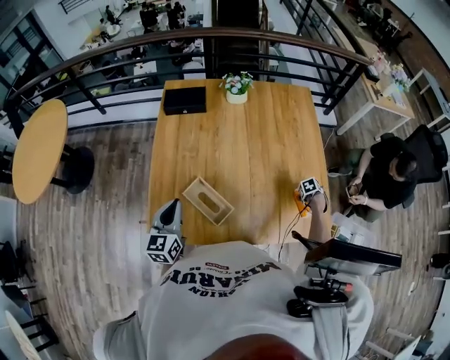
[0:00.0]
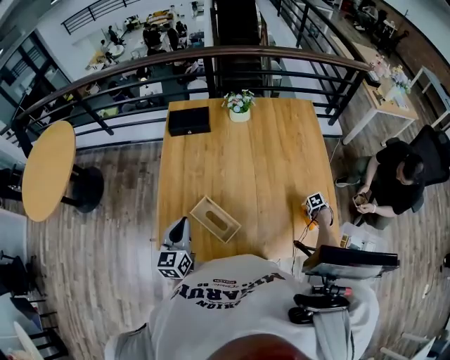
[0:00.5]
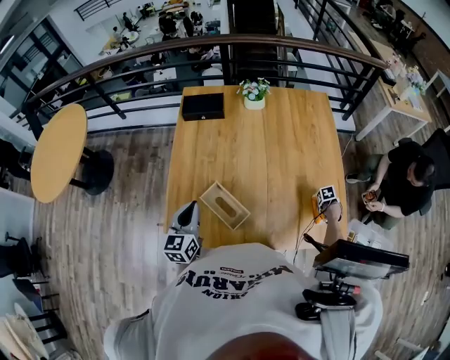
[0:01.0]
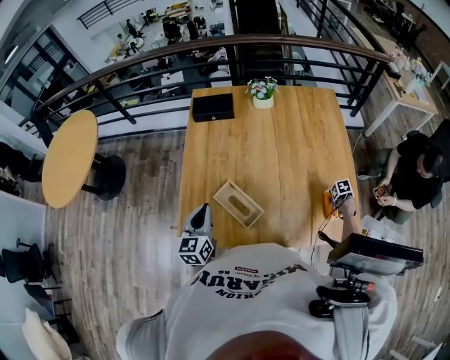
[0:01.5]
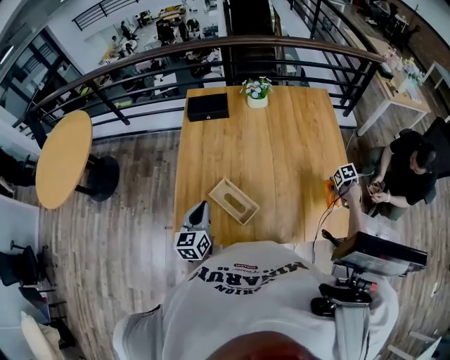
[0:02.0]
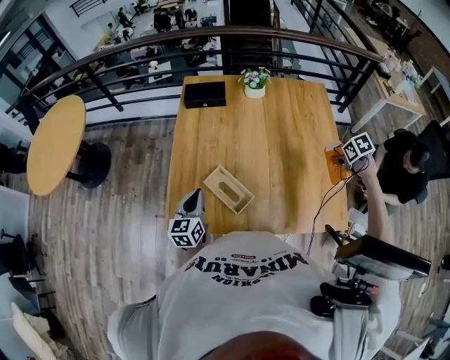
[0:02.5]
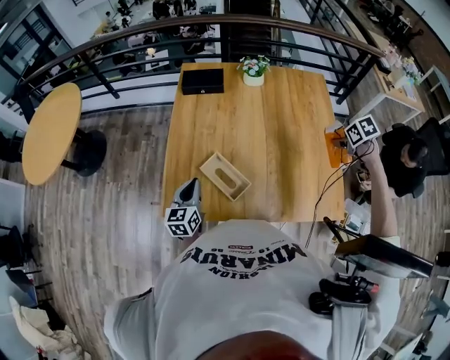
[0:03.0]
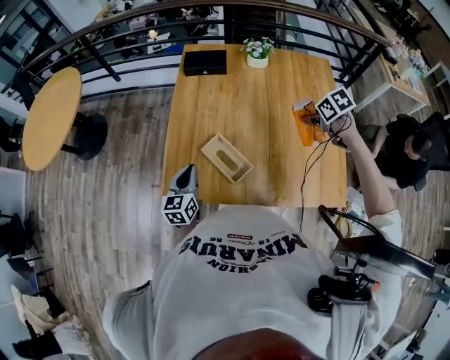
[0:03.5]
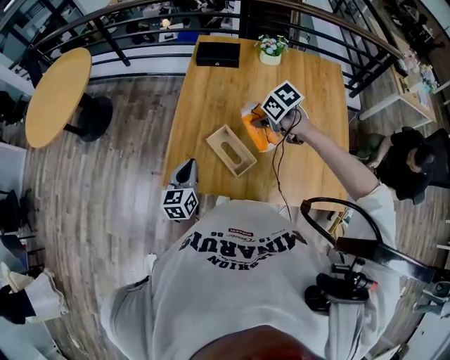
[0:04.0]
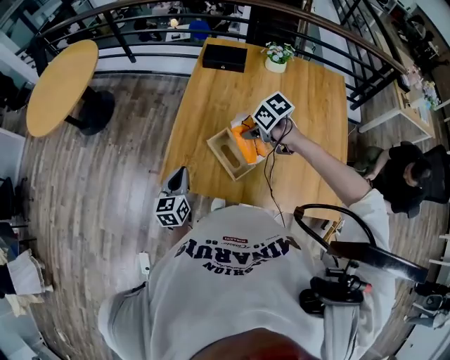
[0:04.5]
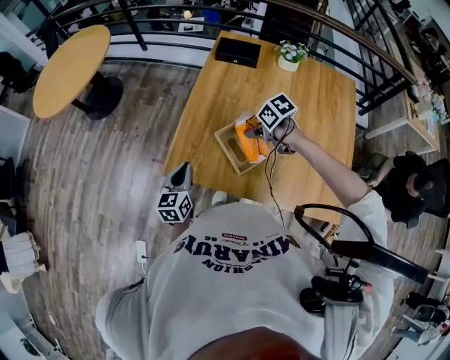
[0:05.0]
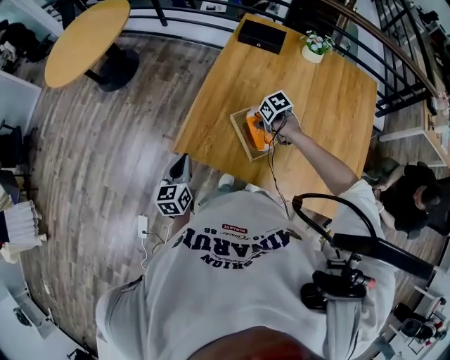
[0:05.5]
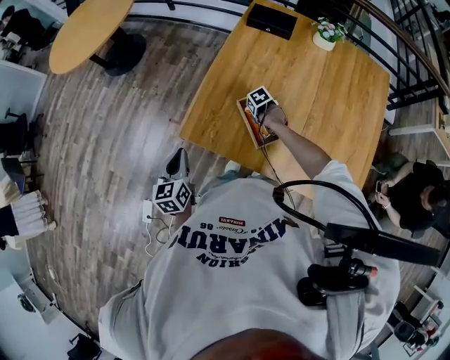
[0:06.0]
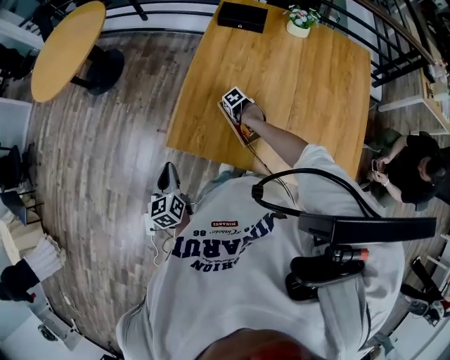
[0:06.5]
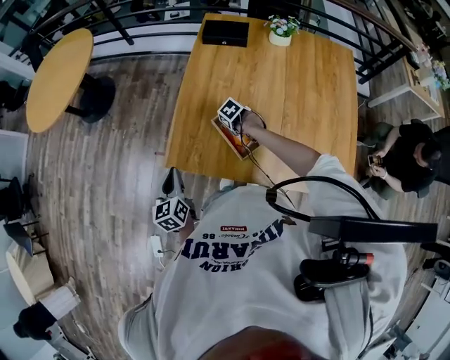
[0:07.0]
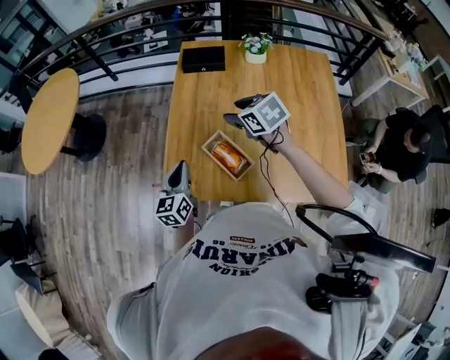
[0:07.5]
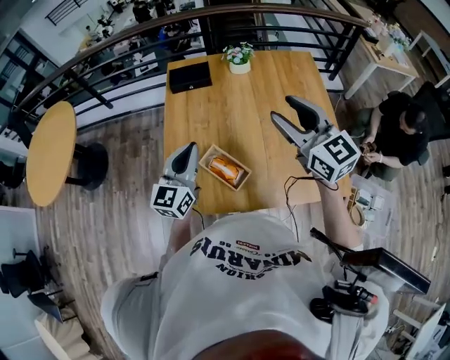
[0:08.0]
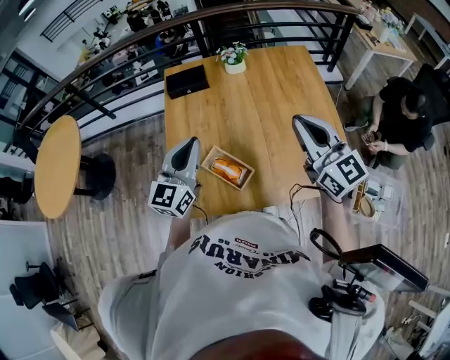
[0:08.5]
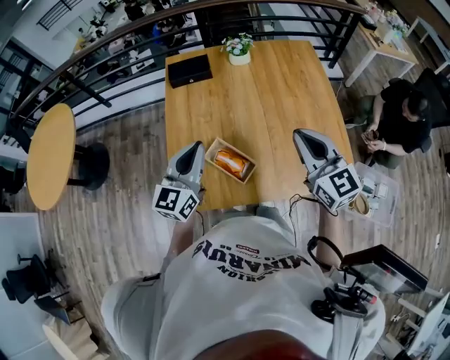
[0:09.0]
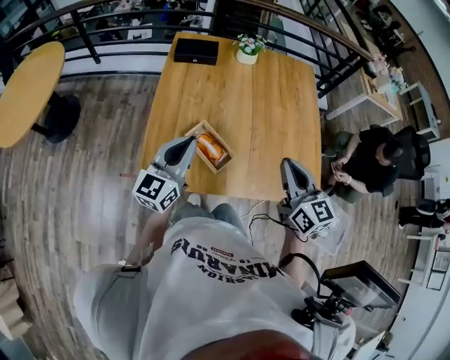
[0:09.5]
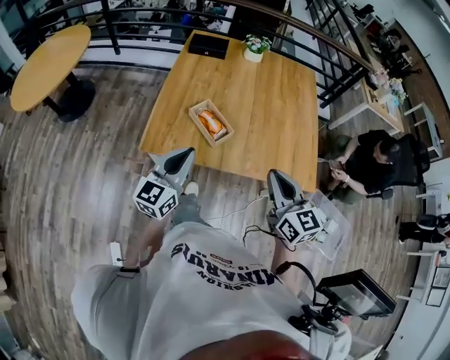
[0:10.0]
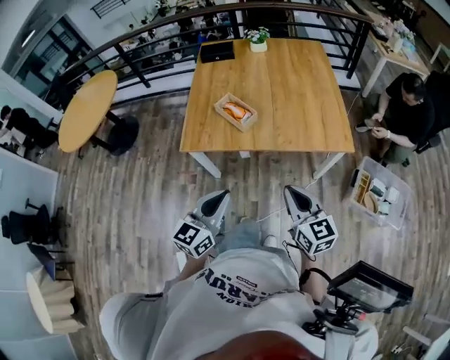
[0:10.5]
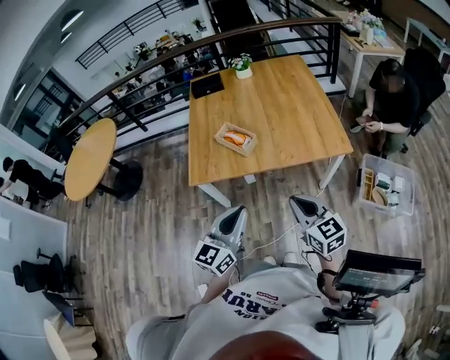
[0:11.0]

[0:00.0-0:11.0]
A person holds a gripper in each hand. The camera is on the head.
0:00.0 to 0:02.0: The right gripper moves upward, roughly 10 cm, and closes its fingers.
0:02.0 to 0:03.5: The right gripper heads upward, covering approximately 25 cm, and turns by approximately 30 degrees.
0:03.5 to 0:05.5: The right gripper shifts by approximately 35 cm, and changes its angle by about 20 degrees; the left gripper shifts by roughly 15 cm, and turns by some 20 degrees.
0:05.5 to 0:07.5: The right gripper moves upward, approximately 25 cm, and changes its angle by roughly 40 degrees. The left gripper shifts by about 15 cm.
0:07.5 to 0:09.0: The left gripper goes roughly 15 cm upward, and turns by roughly 30 degrees; the right gripper ends up about 25 cm from where it was, tilts its fingers roughly 40 degrees upward, and closes.
0:09.0 to 0:11.0: Both grippers are carried backward, roughly 50 cm.

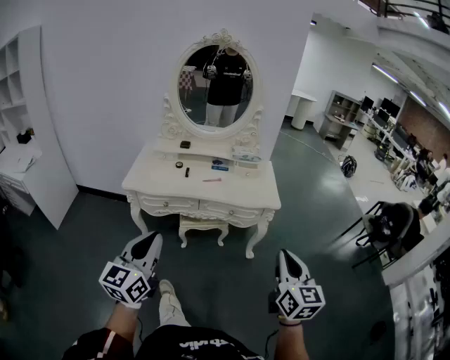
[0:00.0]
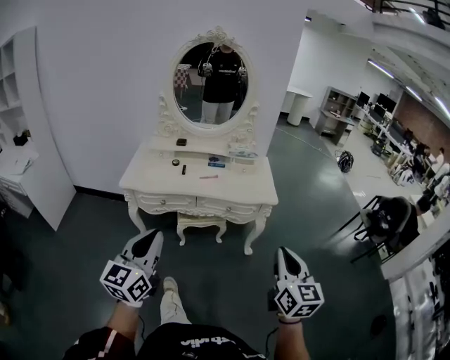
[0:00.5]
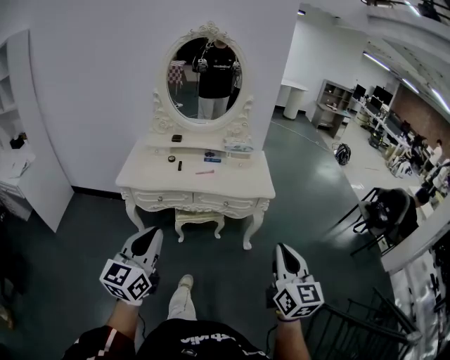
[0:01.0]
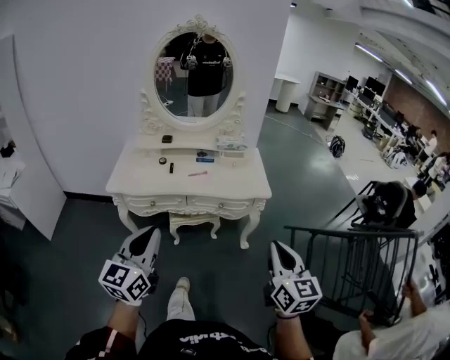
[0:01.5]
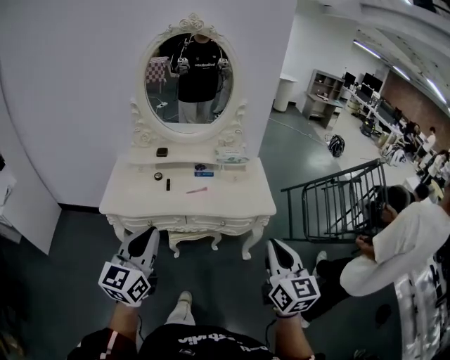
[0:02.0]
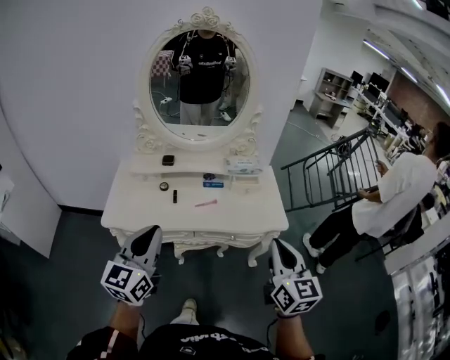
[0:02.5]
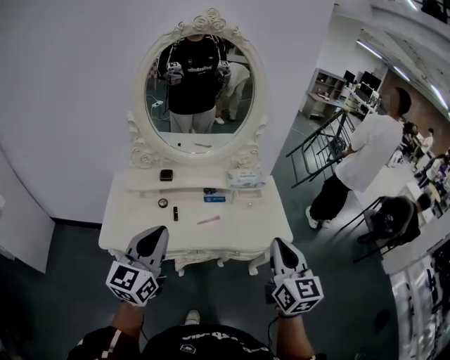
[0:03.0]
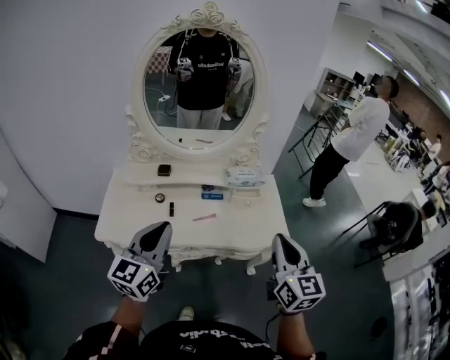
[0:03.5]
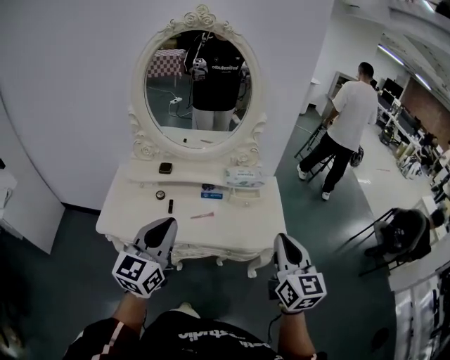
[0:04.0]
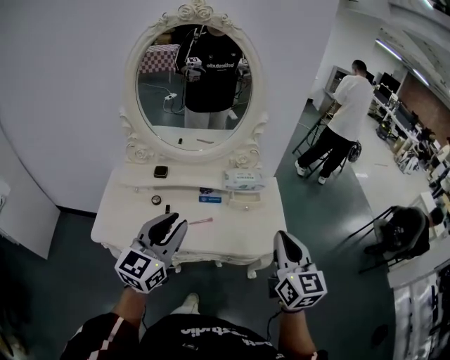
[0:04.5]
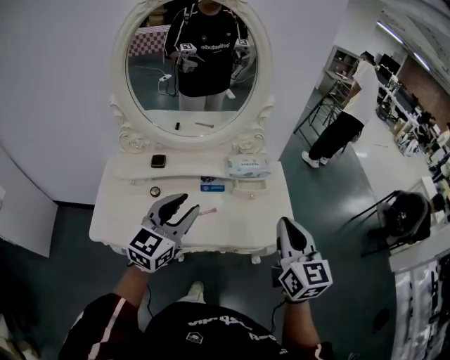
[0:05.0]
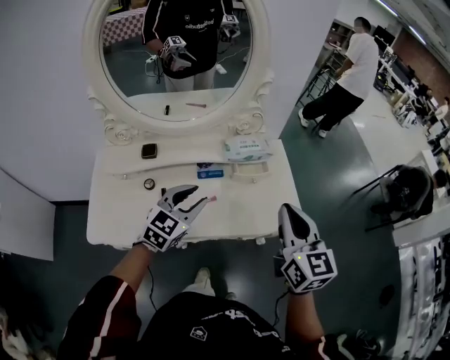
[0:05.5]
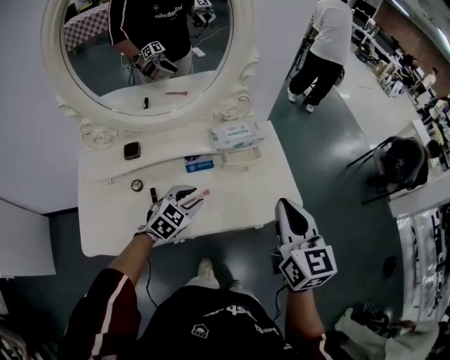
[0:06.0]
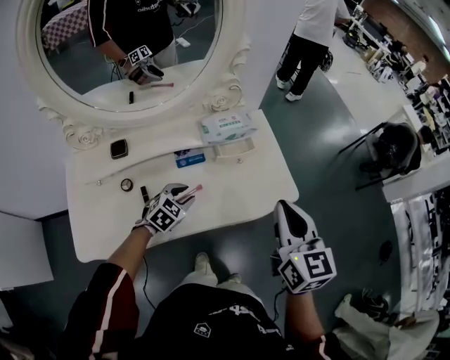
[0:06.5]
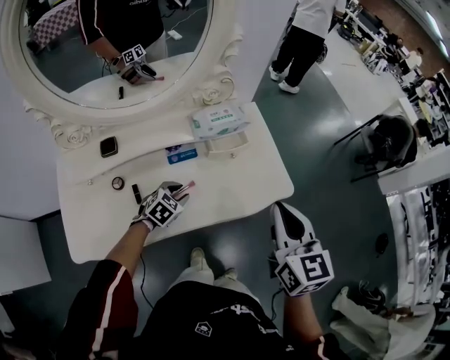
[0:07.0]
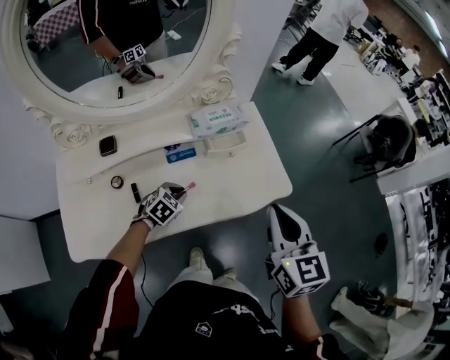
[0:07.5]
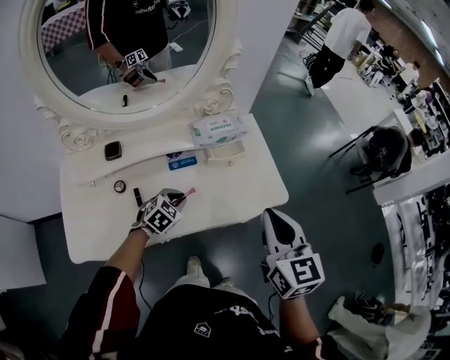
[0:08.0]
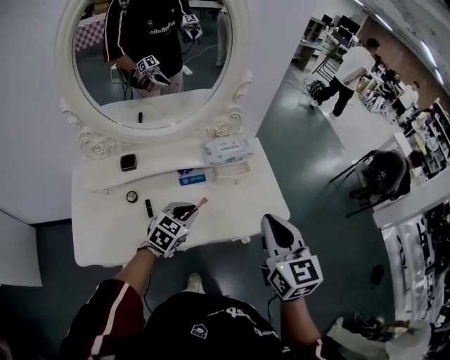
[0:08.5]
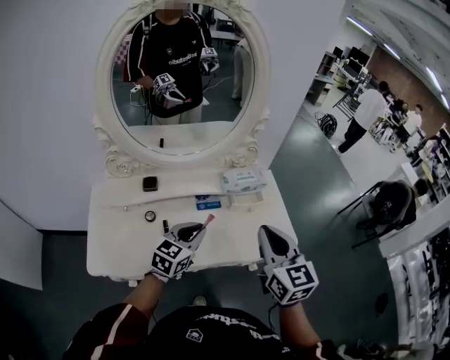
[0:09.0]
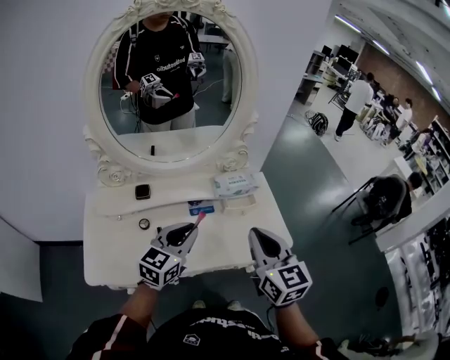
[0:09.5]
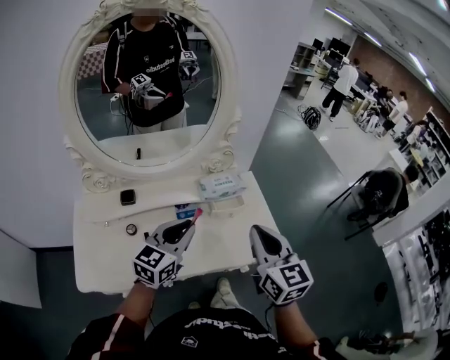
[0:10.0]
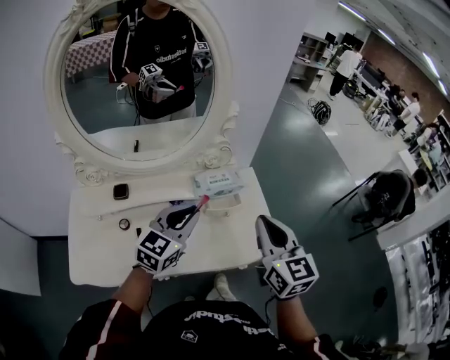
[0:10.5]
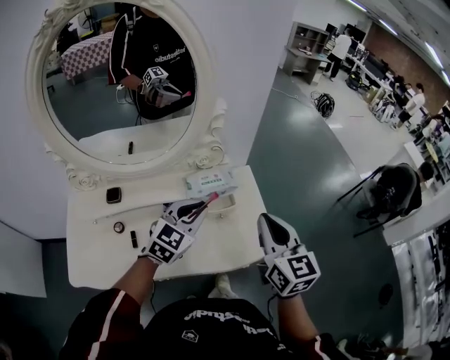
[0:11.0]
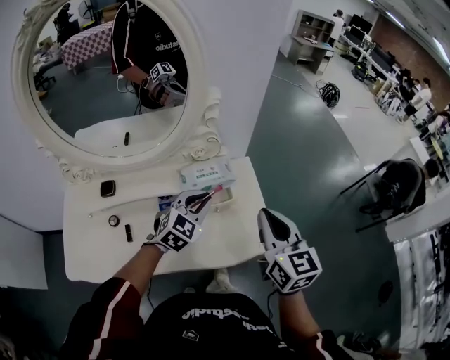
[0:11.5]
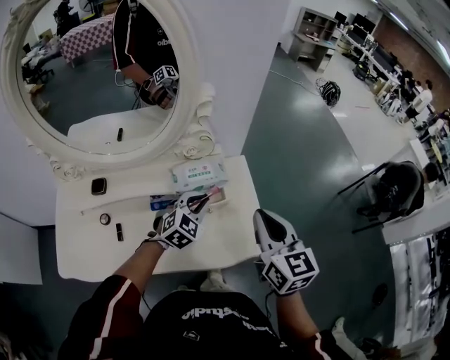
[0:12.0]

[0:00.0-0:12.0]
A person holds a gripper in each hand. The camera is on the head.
0:00.0 to 0:02.0: The grippers both shift forward by some 15 cm.
0:02.0 to 0:04.0: The two grippers go about 20 cm forward.
0:04.0 to 0:06.0: The right gripper shifts roughly 15 cm forward, to the left and downward; the left gripper heads downward and forward, covering roughly 35 cm, points its fingers about 40 degrees further downward, and opens up.
0:06.0 to 0:08.0: The left gripper goes approximately 10 cm downward, and closes up.
0:08.0 to 0:10.0: The right gripper goes roughly 5 cm upward; the left gripper shifts roughly 25 cm upward, and points its fingers about 40 degrees further upward.
0:10.0 to 0:12.0: The right gripper heads forward and to the right, covering approximately 15 cm. Meanwhile the left gripper heads forward, to the right and downward, covering roughly 25 cm, and swivels about 40 degrees.

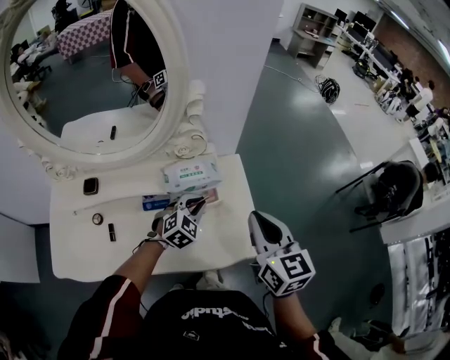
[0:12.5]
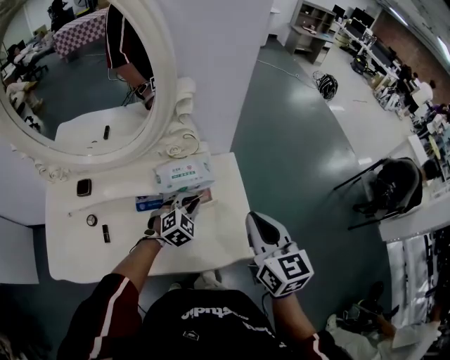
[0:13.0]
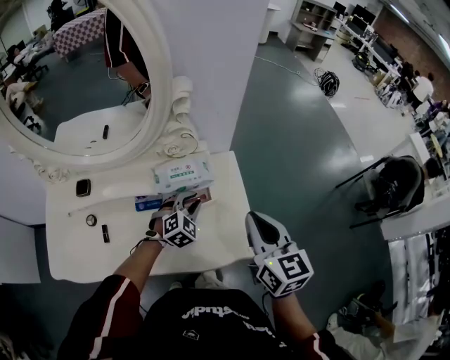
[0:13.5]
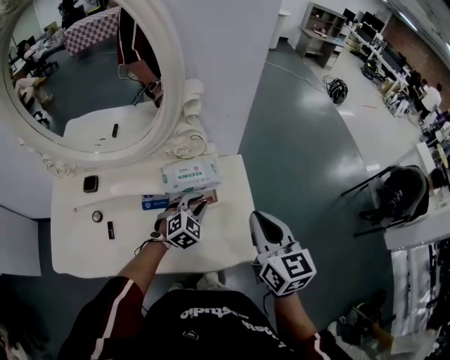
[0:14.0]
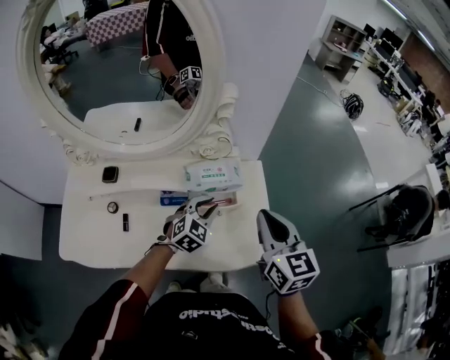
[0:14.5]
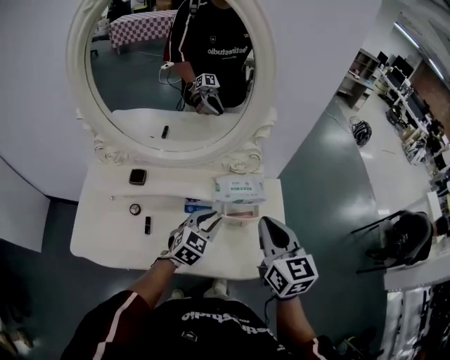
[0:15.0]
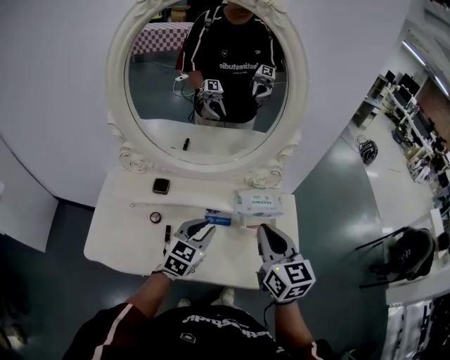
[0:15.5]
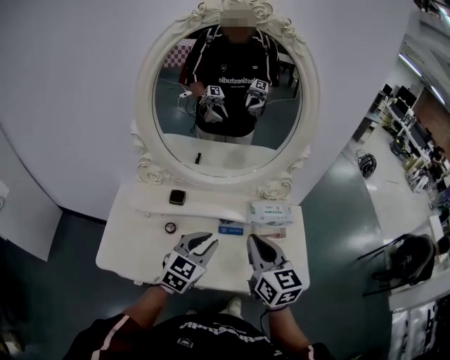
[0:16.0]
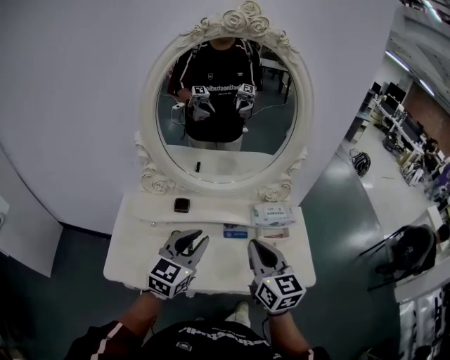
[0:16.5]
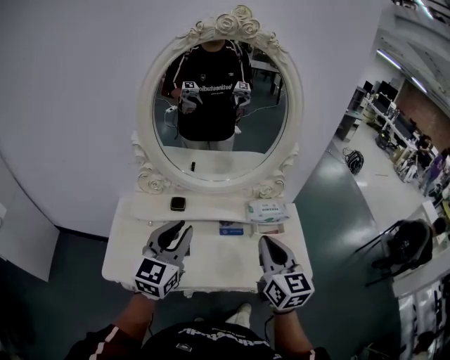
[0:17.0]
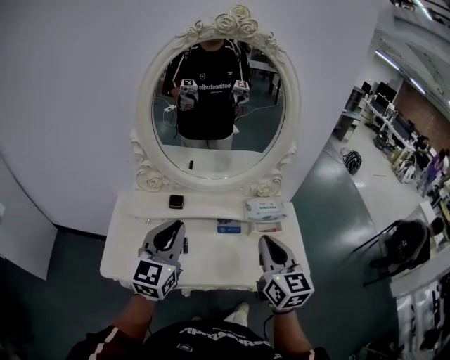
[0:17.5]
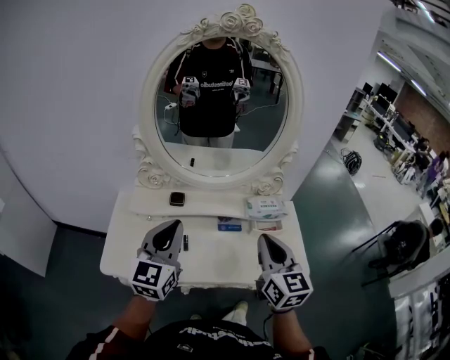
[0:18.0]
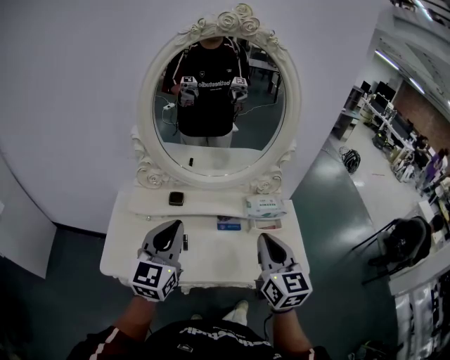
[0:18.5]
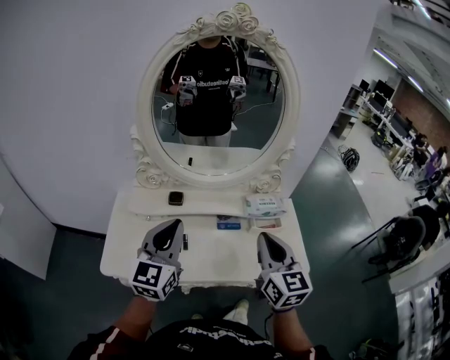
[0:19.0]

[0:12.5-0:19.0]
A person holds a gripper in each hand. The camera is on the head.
0:12.5 to 0:14.5: The grippers move only a little.
0:14.5 to 0:17.0: The left gripper goes about 40 cm to the left, upward and backward, and tips its fingers upward by some 30 degrees; the right gripper moves to the left and backward, some 25 cm.
0:17.0 to 0:19.0: There are only small adjustments of the grippers.
